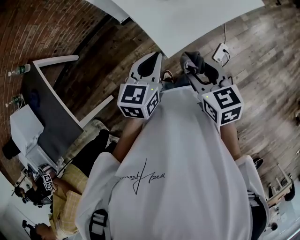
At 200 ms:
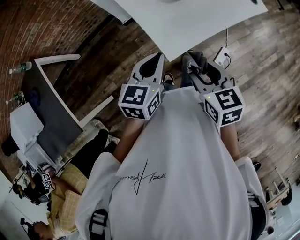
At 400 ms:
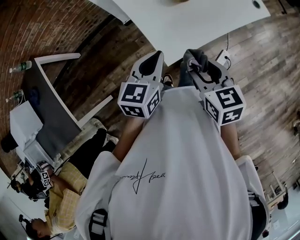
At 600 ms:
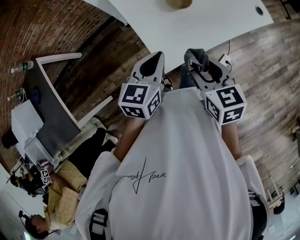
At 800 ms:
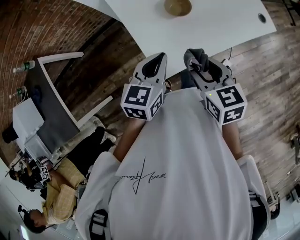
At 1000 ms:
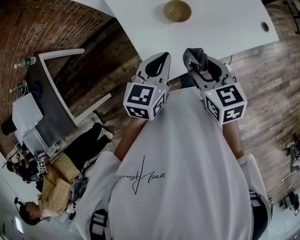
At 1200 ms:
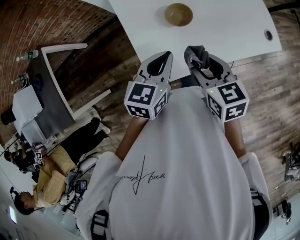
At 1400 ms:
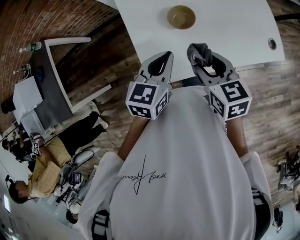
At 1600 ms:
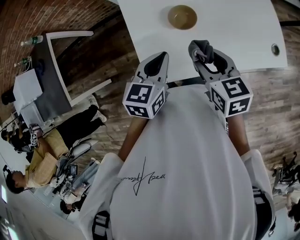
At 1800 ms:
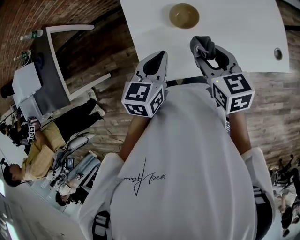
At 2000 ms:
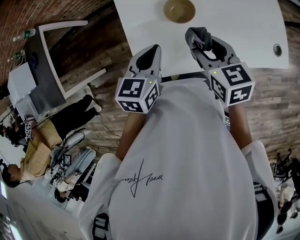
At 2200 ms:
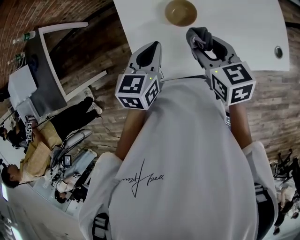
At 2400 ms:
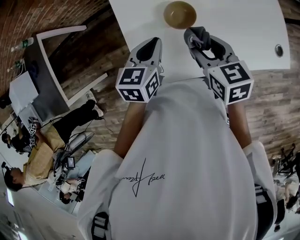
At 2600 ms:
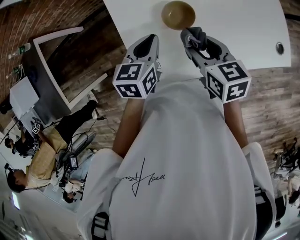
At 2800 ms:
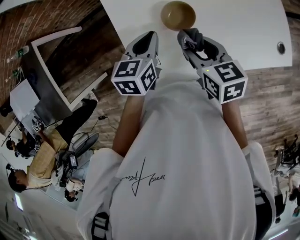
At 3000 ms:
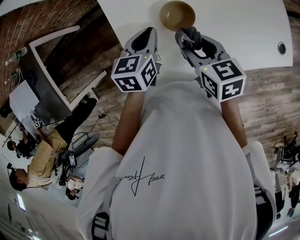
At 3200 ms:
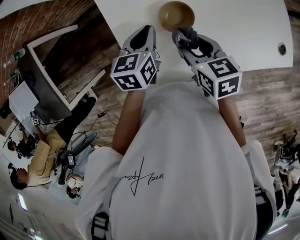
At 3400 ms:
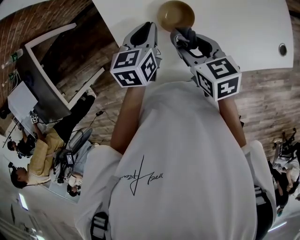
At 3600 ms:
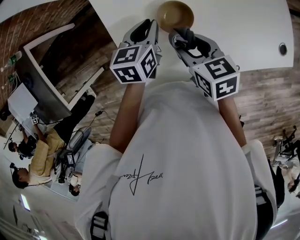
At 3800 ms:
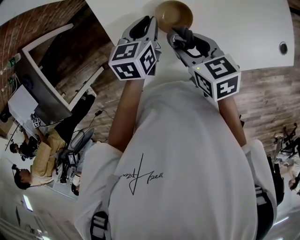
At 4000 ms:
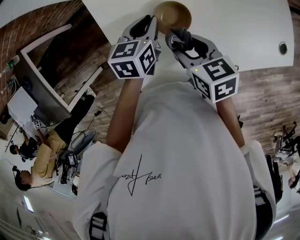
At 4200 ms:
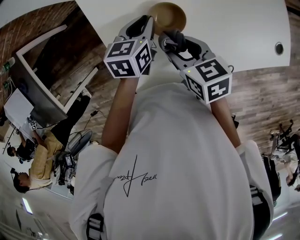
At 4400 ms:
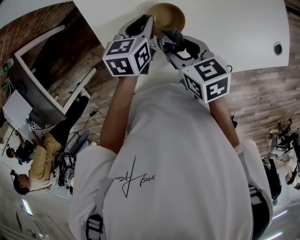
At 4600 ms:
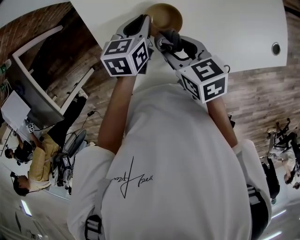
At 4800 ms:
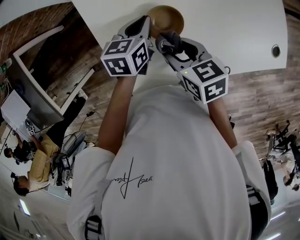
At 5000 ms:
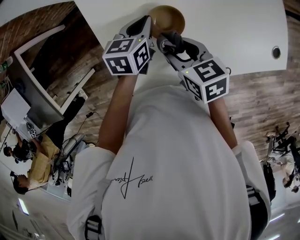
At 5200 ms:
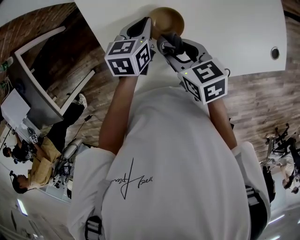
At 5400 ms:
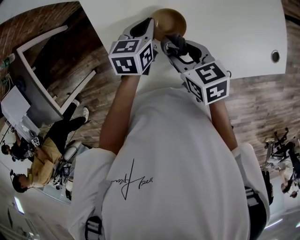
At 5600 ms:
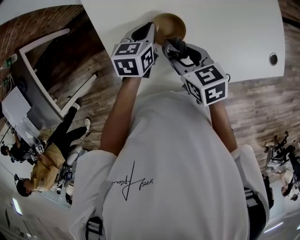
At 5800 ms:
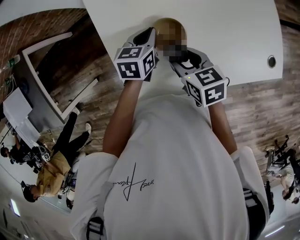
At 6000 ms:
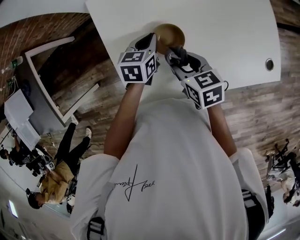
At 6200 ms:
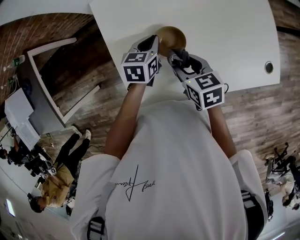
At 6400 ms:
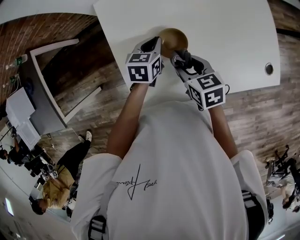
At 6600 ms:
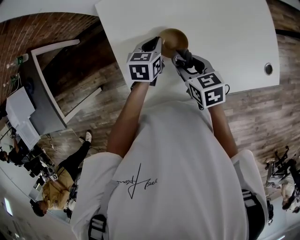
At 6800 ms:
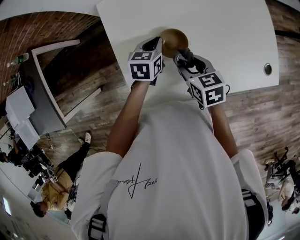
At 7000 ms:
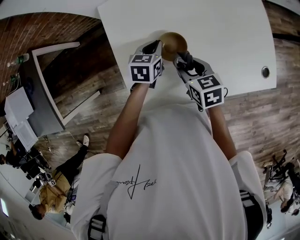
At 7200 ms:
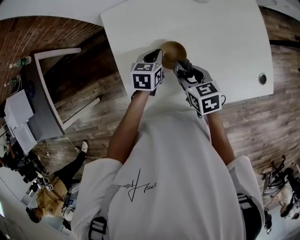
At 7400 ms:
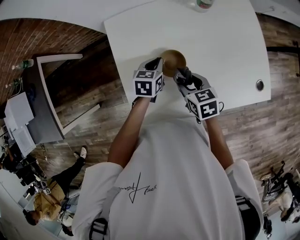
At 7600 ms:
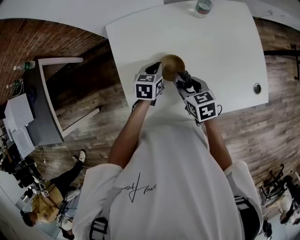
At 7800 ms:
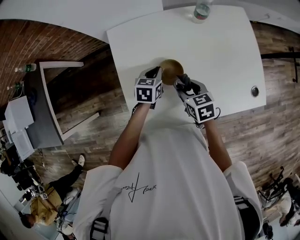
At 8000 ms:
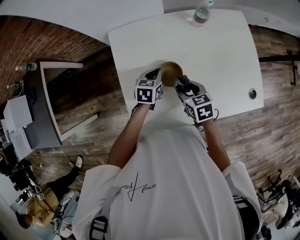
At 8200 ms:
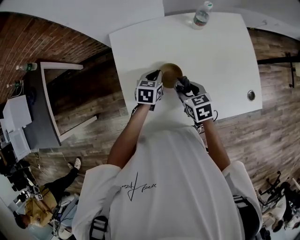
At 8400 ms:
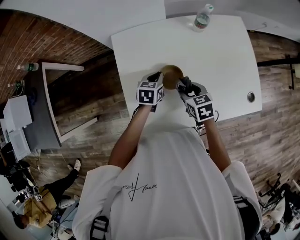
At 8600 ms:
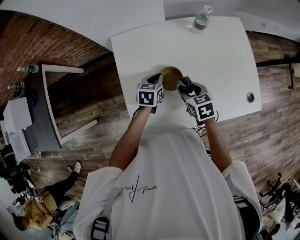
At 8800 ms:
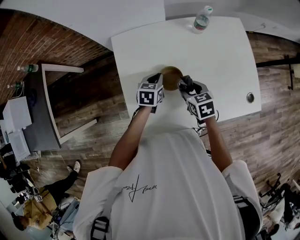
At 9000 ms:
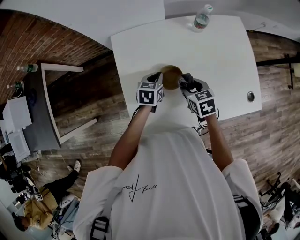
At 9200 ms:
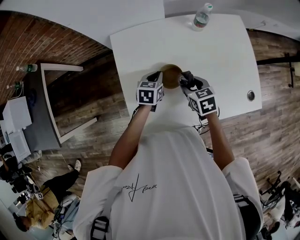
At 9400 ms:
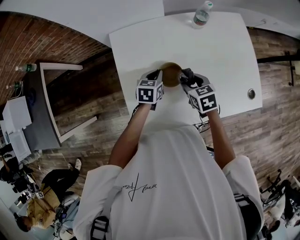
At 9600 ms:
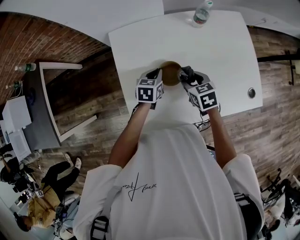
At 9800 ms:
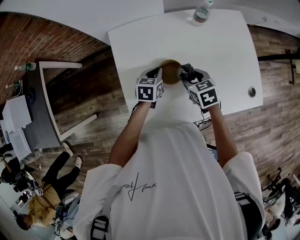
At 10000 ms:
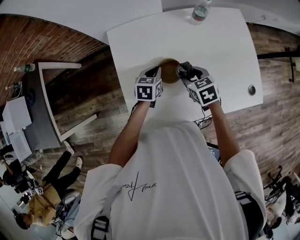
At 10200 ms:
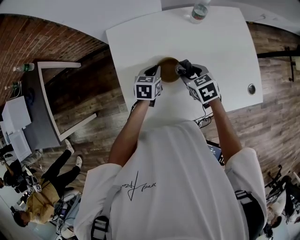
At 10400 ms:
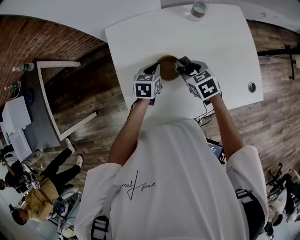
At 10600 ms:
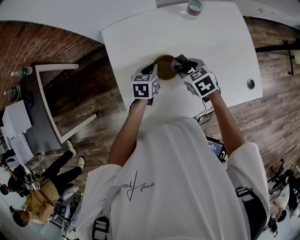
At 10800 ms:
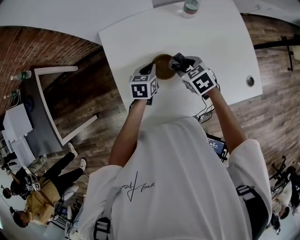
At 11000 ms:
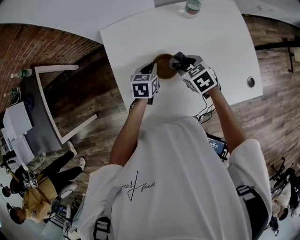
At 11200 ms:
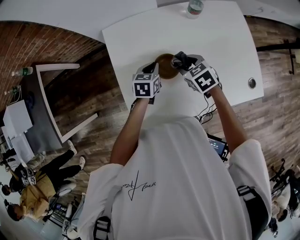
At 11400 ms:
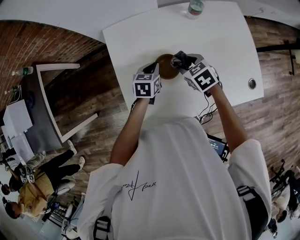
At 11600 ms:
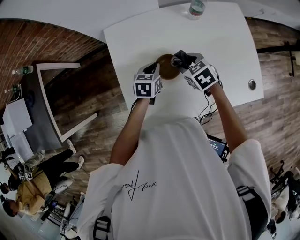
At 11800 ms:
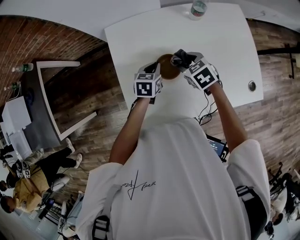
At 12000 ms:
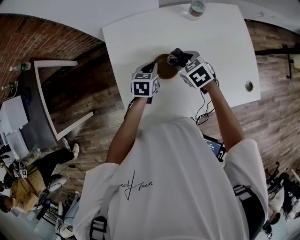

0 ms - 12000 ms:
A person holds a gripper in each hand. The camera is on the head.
0 ms - 1600 ms: Both grippers move forward and to the right, approximately 25 cm. The left gripper turns by about 20 degrees. Meanwhile the right gripper turns by some 20 degrees.
1600 ms - 3000 ms: Both grippers travel together forward and downward, about 15 cm.
3000 ms - 4400 ms: The left gripper moves downward, approximately 5 cm.
4400 ms - 7600 ms: The grippers move only a little.
7600 ms - 9000 ms: There are only small adjustments of the grippers.
9000 ms - 10400 ms: The grippers stay close to where they were, moving slightly.
10400 ms - 12000 ms: The grippers move only a little.

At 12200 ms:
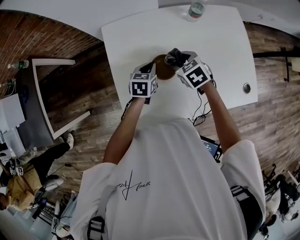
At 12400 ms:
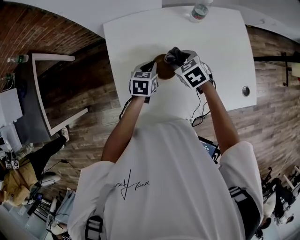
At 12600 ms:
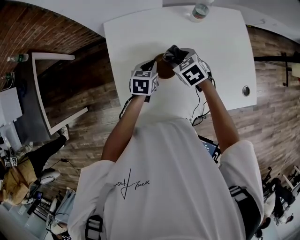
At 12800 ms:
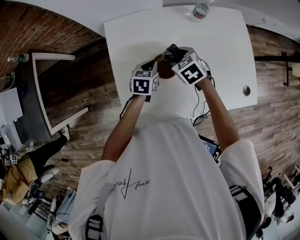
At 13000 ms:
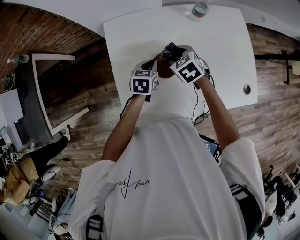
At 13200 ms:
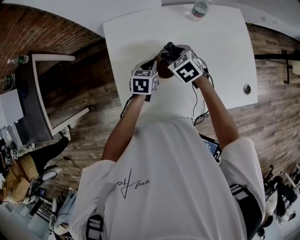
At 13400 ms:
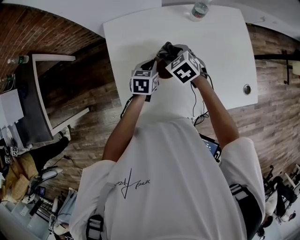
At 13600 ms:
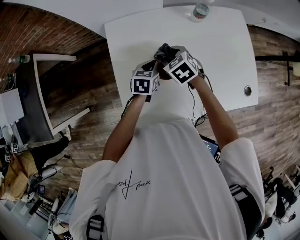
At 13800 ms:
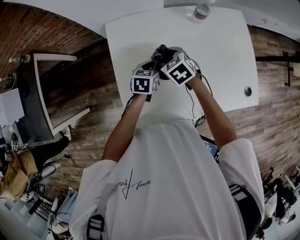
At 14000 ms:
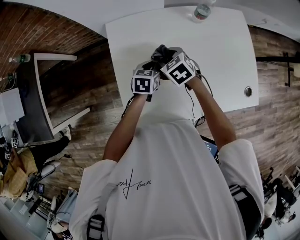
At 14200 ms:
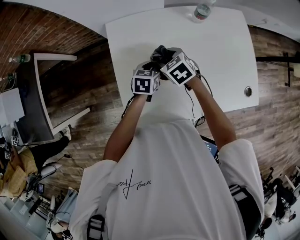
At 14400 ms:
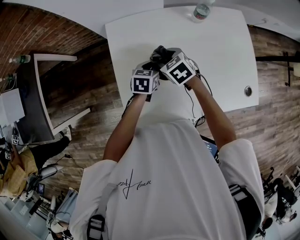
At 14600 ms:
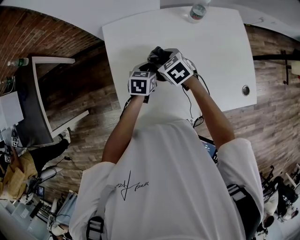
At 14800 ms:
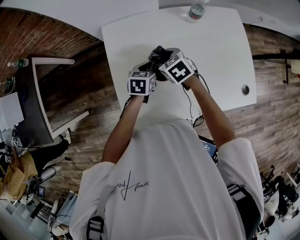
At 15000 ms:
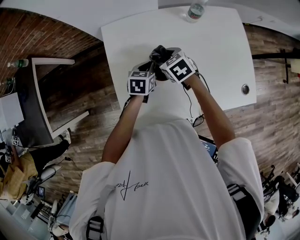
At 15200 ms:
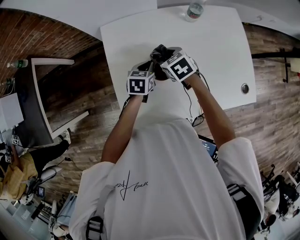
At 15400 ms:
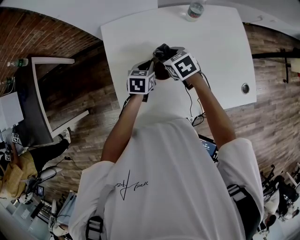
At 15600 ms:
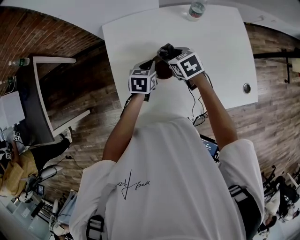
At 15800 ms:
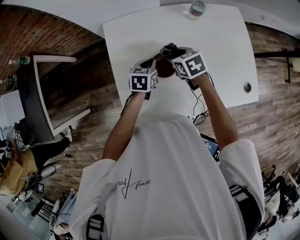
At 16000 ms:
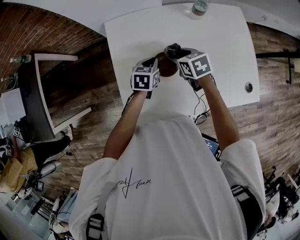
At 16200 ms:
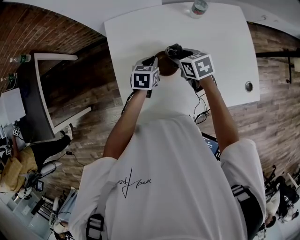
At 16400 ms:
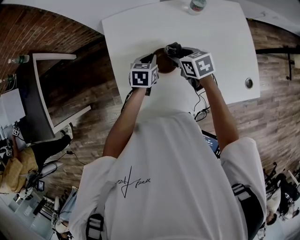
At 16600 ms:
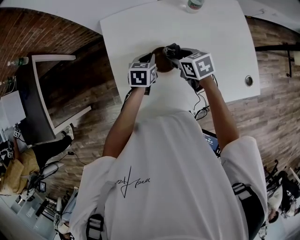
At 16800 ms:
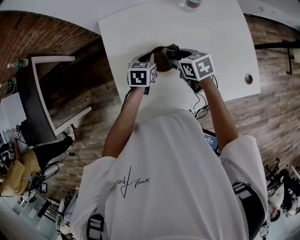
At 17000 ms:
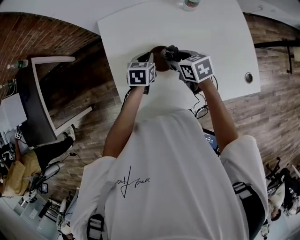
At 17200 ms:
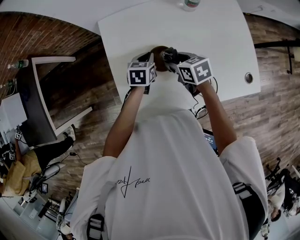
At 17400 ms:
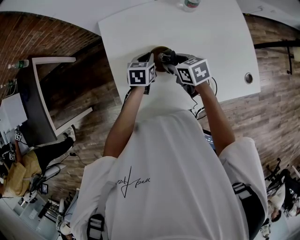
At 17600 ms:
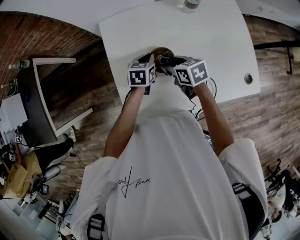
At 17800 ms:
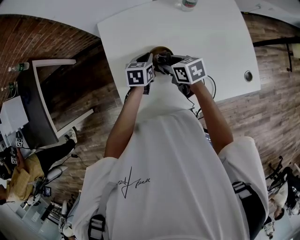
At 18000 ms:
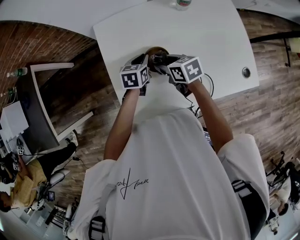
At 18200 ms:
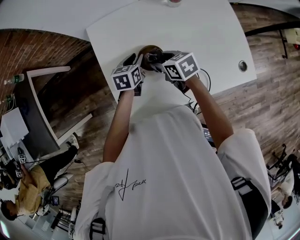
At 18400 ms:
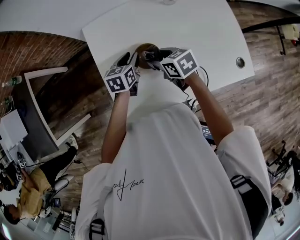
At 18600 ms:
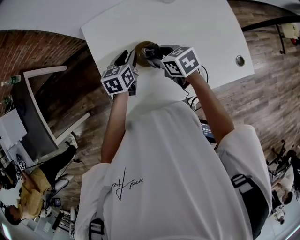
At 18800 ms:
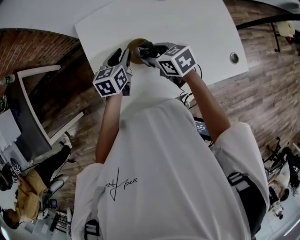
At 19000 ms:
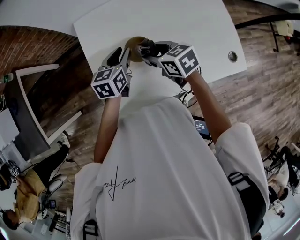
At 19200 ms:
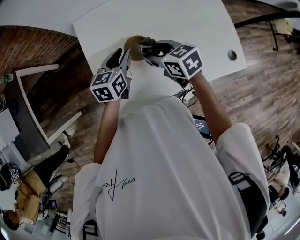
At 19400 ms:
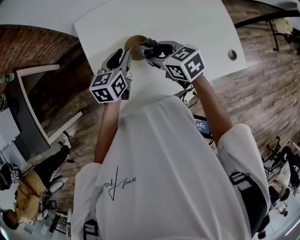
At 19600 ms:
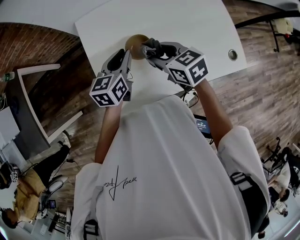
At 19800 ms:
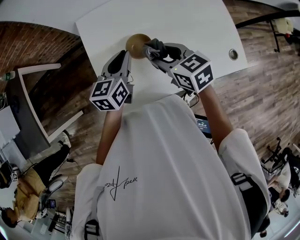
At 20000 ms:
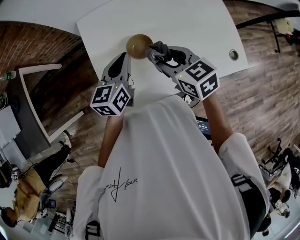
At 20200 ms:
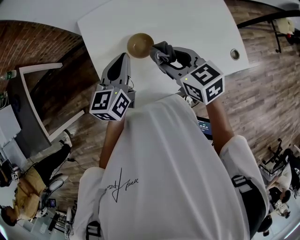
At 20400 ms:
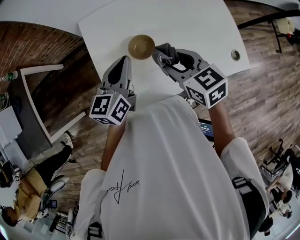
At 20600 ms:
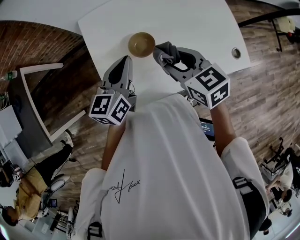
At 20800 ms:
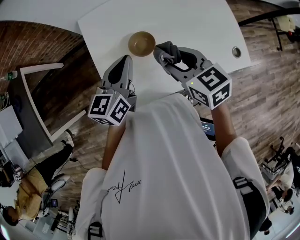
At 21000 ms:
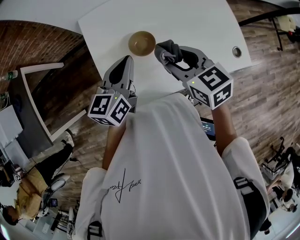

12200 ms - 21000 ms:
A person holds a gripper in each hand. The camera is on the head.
12200 ms - 13600 ms: The right gripper goes about 5 cm to the left.
13600 ms - 15200 ms: The grippers stay close to where they were, moving slightly.
15200 ms - 16600 ms: The right gripper ends up roughly 5 cm from where it was.
16600 ms - 18000 ms: The grippers make only small movements.
18000 ms - 19600 ms: The right gripper goes approximately 10 cm upward. The left gripper goes approximately 15 cm upward and backward.
19600 ms - 21000 ms: Both grippers move upward, some 5 cm.

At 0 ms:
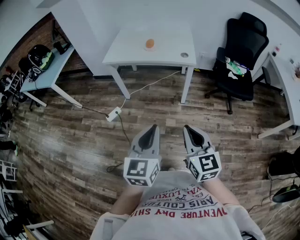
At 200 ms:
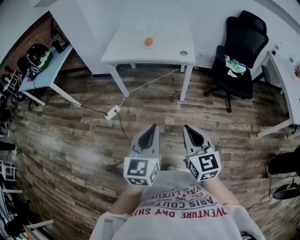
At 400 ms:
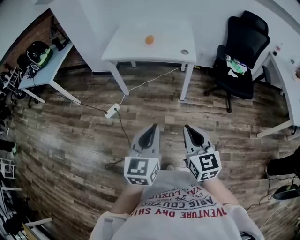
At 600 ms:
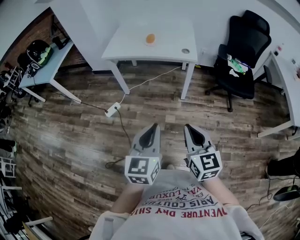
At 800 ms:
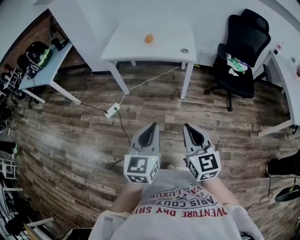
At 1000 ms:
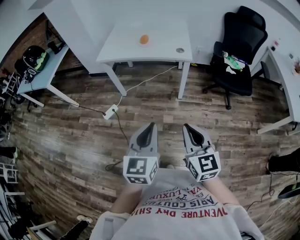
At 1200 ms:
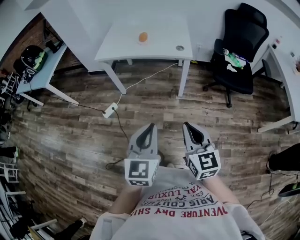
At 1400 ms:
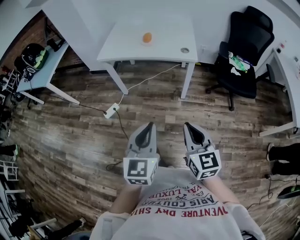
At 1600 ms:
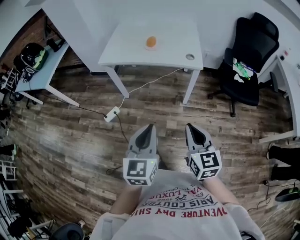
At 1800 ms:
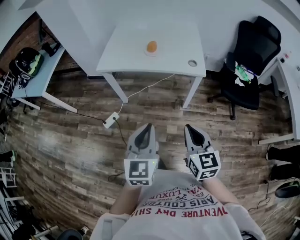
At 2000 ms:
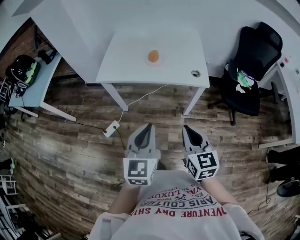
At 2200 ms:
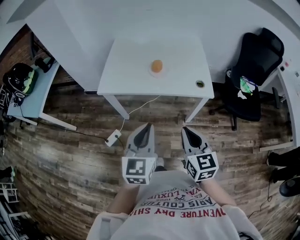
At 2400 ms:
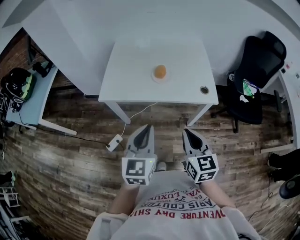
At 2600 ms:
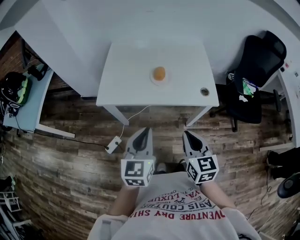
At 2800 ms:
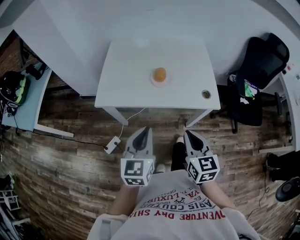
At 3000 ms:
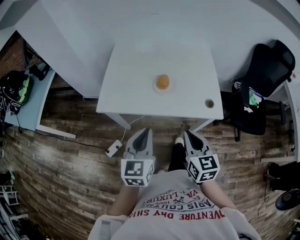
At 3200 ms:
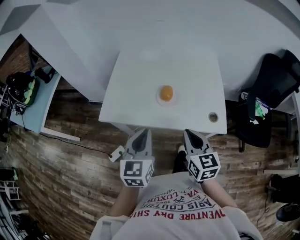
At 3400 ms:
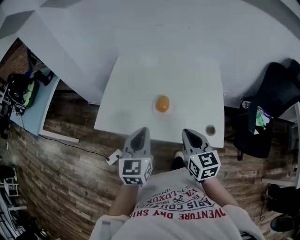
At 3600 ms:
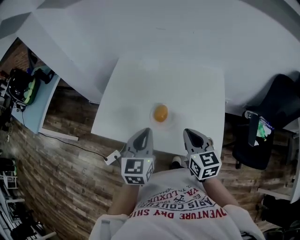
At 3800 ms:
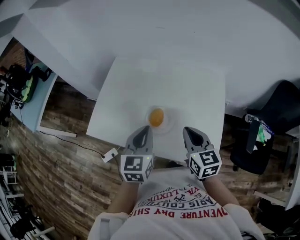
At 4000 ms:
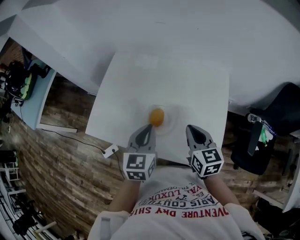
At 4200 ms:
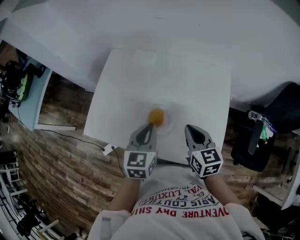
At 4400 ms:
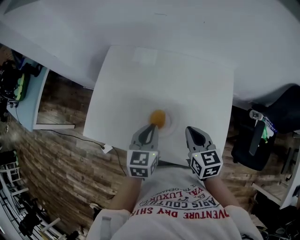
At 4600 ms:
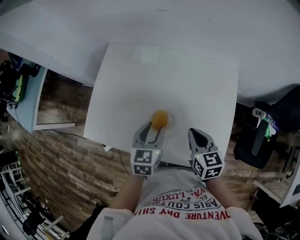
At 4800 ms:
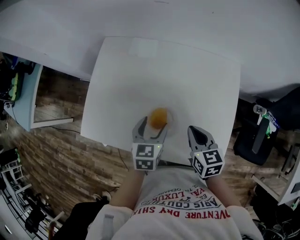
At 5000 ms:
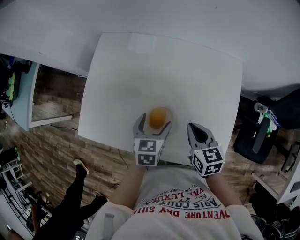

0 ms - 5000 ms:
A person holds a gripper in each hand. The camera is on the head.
0 ms - 1600 ms: Both grippers travel together forward, some 15 cm.
1600 ms - 3400 ms: Both grippers are carried forward, about 50 cm.
3400 ms - 5000 ms: The left gripper heads downward, forward and to the right, covering approximately 30 cm, swivels roughly 30 degrees, and opens. Meanwhile the right gripper moves forward and downward, approximately 20 cm, and rotates about 20 degrees.
